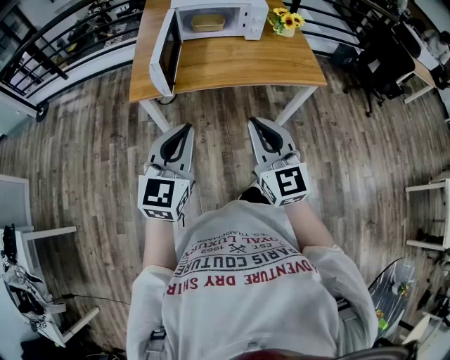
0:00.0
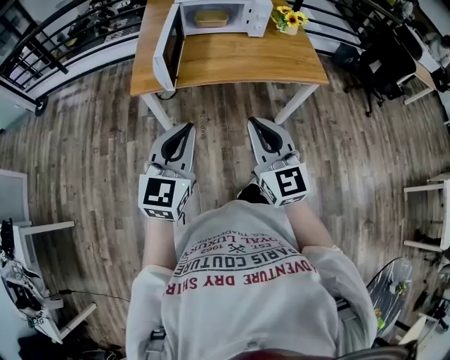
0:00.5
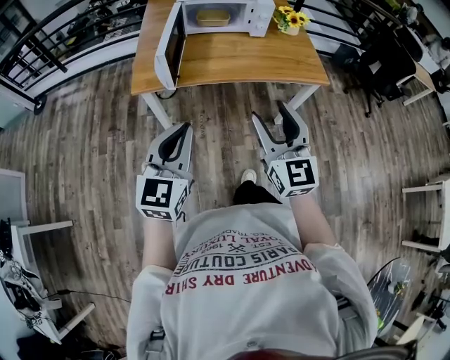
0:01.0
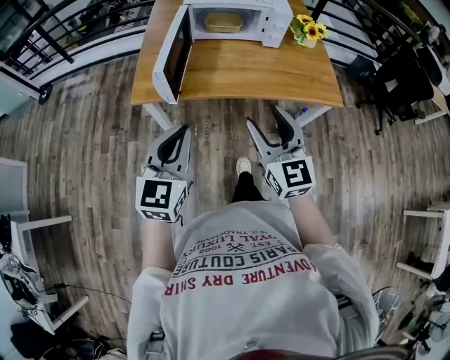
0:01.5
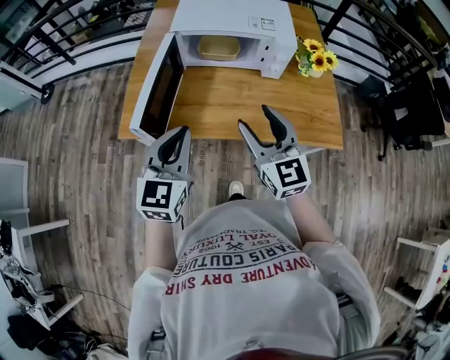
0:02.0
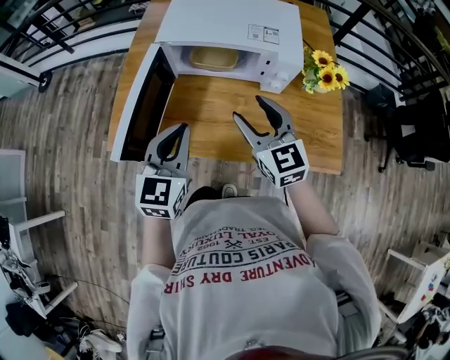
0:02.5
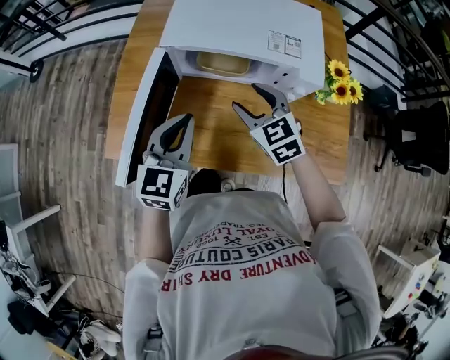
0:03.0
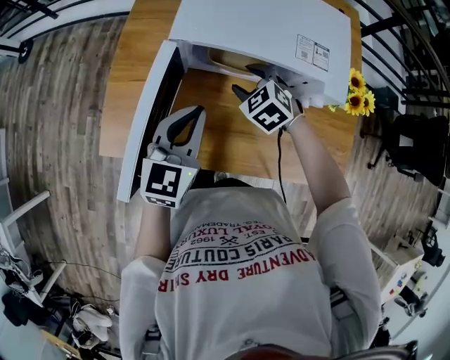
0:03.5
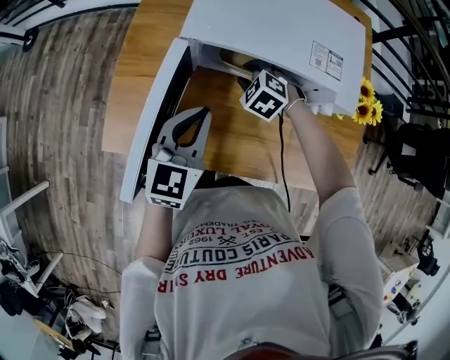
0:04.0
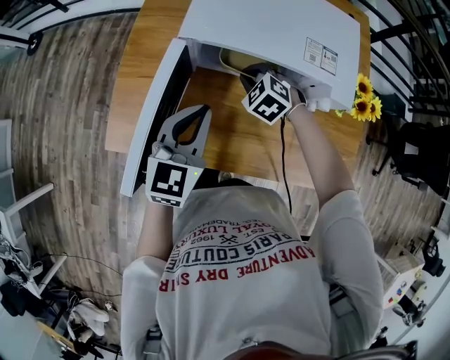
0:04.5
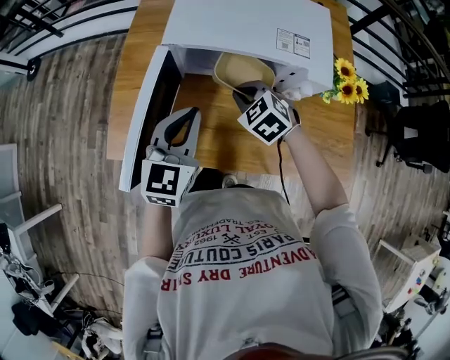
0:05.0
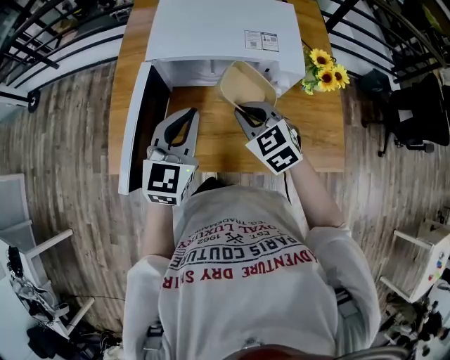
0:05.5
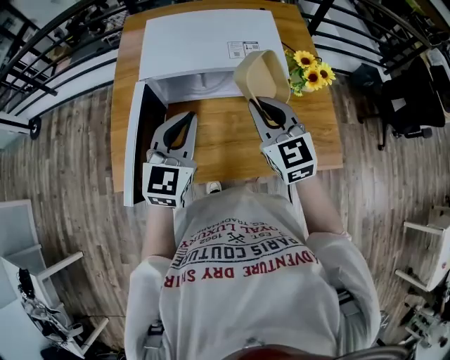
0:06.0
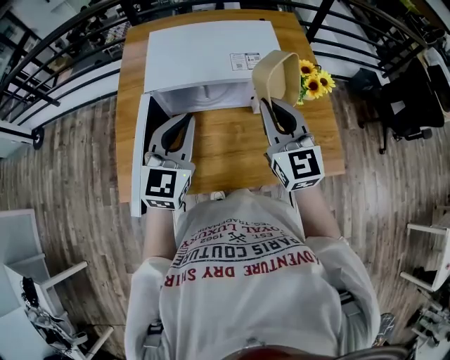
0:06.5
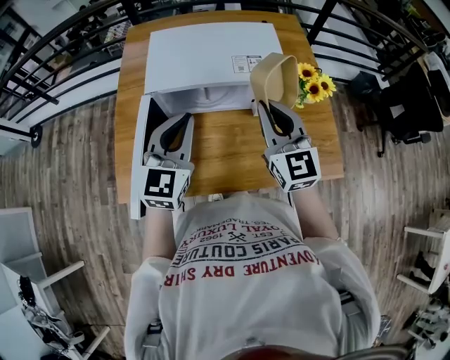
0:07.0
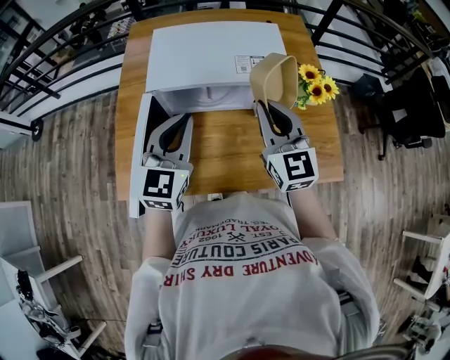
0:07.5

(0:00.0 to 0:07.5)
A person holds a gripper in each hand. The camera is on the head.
0:00.0 - 0:02.0: The grippers both shift forward by approximately 25 cm. The right gripper opens.
0:02.0 - 0:04.0: The right gripper is displaced forward and downward by approximately 40 cm, tilts its fingers some 60 degrees downward, and closes up. Meanwhile the left gripper shifts roughly 25 cm forward and downward.
0:04.0 - 0:05.5: The right gripper travels backward and upward by approximately 20 cm, rotates roughly 40 degrees, and closes up, while the left gripper goes approximately 5 cm upward.
0:05.5 - 0:07.5: The right gripper travels upward and to the right by some 15 cm, and tips its fingers upward by about 30 degrees. Meanwhile the left gripper shifts by roughly 5 cm.

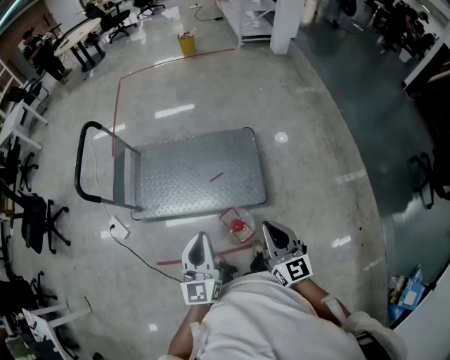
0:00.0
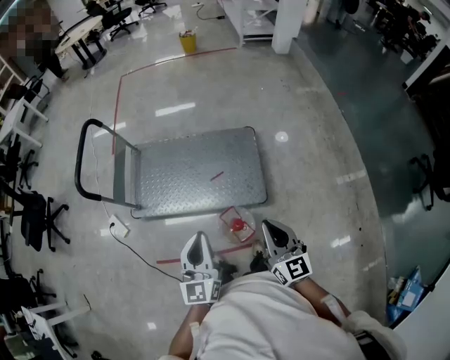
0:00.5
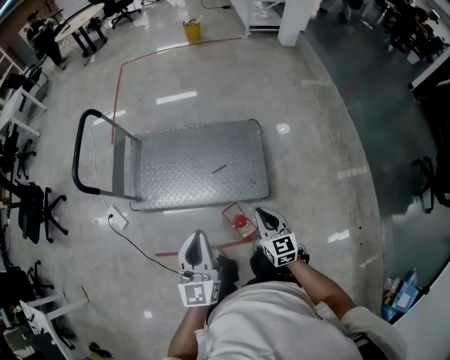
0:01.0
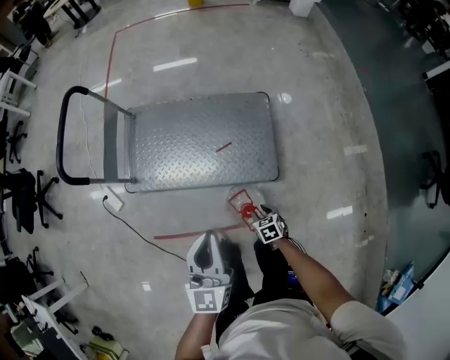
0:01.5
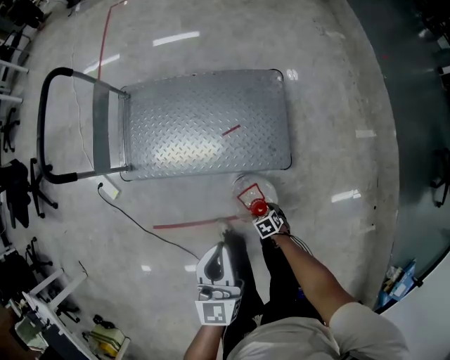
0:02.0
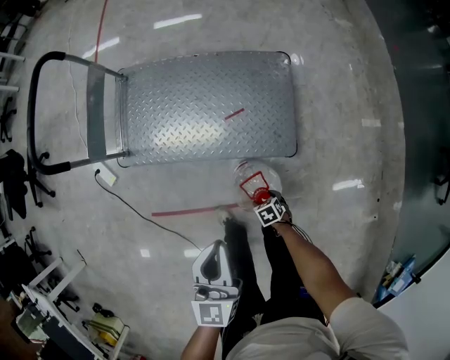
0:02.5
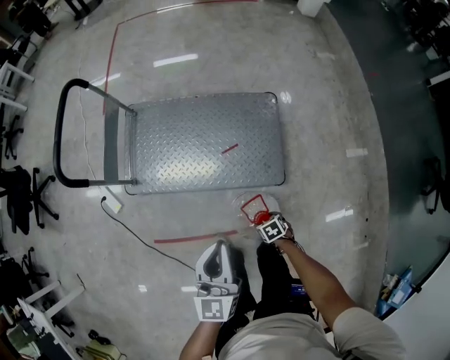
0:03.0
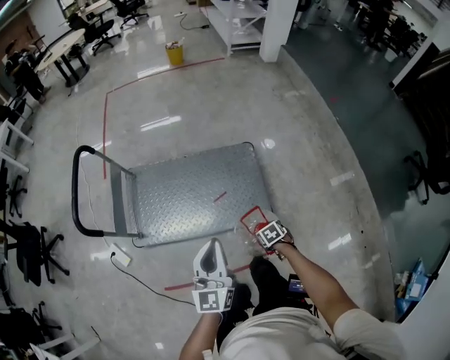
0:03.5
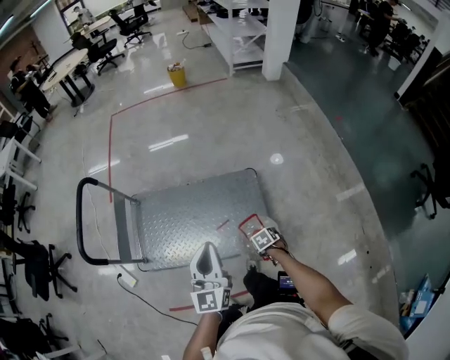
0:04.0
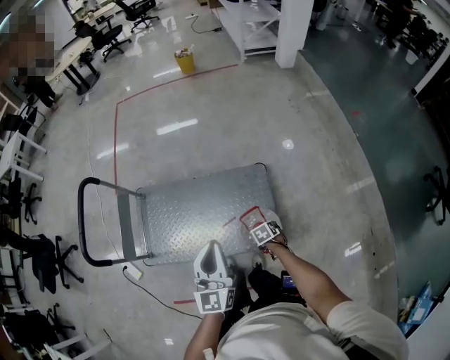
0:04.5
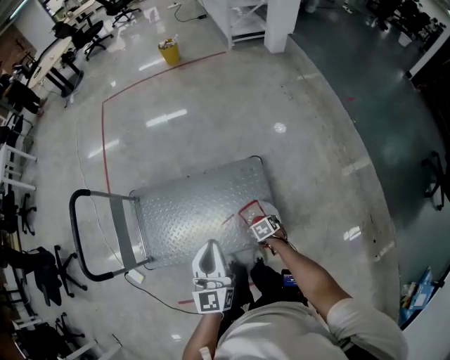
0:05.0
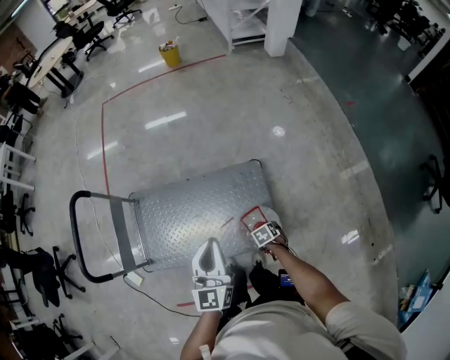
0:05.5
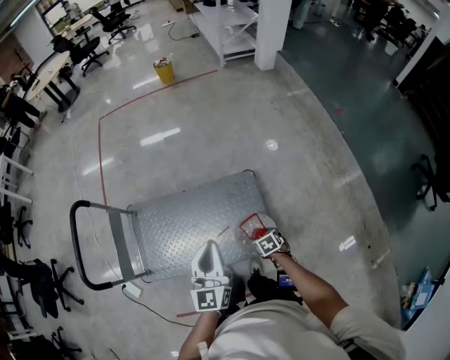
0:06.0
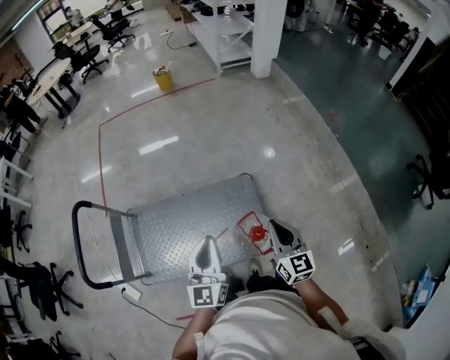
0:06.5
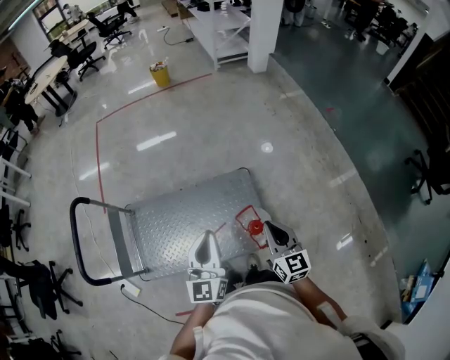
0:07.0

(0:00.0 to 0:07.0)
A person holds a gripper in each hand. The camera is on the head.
0:00.0 - 0:02.0: The left gripper shifts roughly 15 cm downward. Meanwhile the right gripper shifts some 50 cm downward, tips its fingers downward by approximately 70 degrees, and opens up.
0:02.0 - 0:03.5: The left gripper is displaced upward by about 15 cm; the right gripper heads upward, covering approximately 20 cm.
0:03.5 - 0:05.0: The left gripper ends up roughly 25 cm from where it was, while the right gripper moves roughly 25 cm.
0:05.0 - 0:07.0: The right gripper shifts roughly 35 cm upward, tilts its fingers some 60 degrees upward, and closes up; the left gripper ends up roughly 5 cm from where it was.

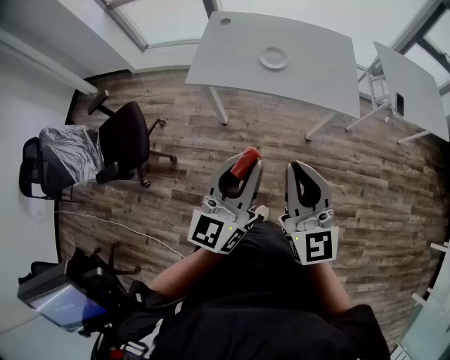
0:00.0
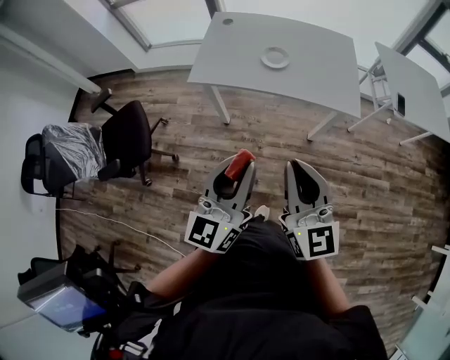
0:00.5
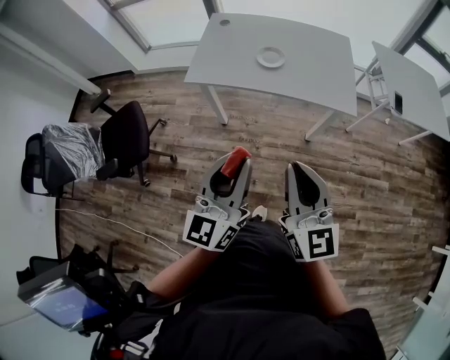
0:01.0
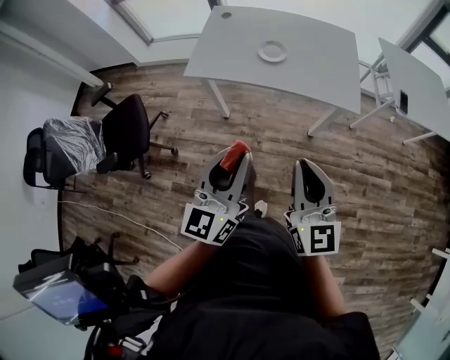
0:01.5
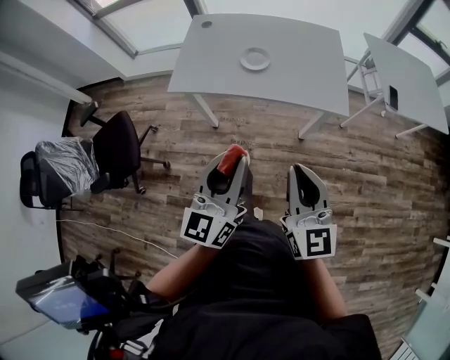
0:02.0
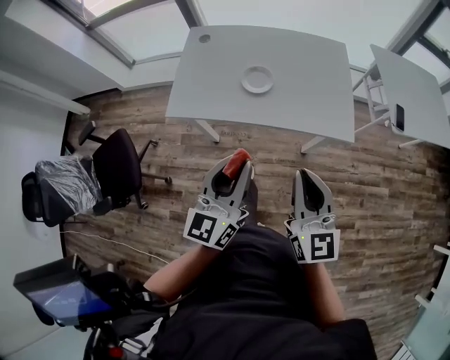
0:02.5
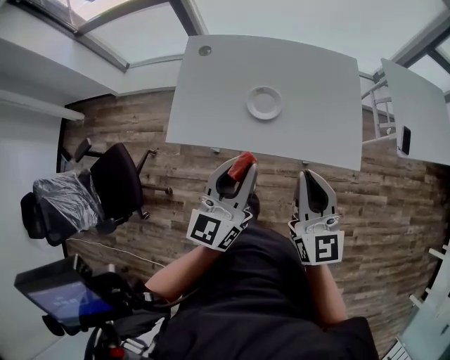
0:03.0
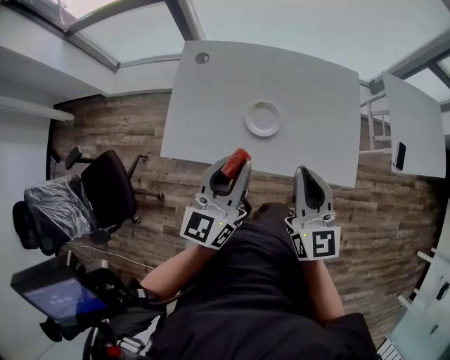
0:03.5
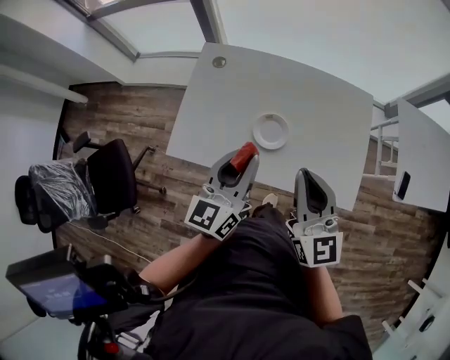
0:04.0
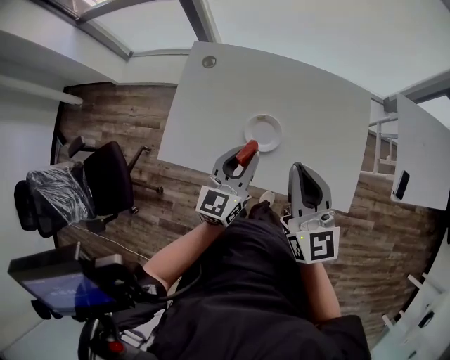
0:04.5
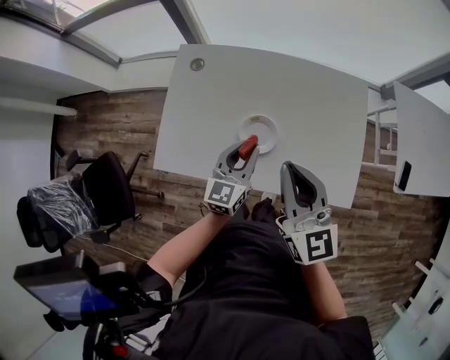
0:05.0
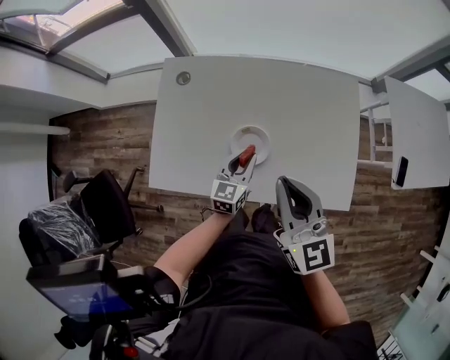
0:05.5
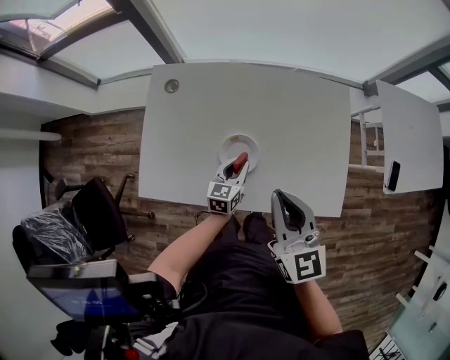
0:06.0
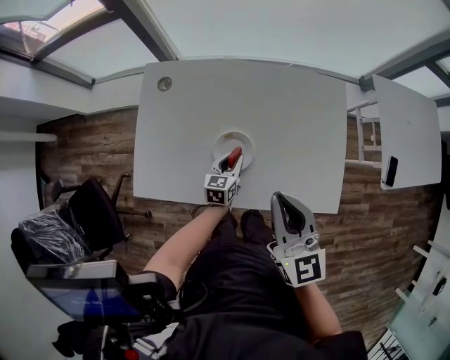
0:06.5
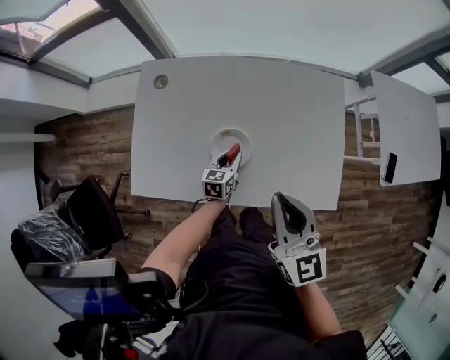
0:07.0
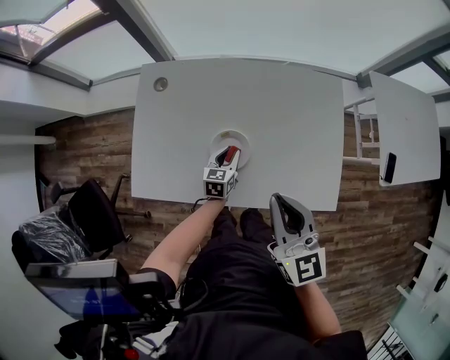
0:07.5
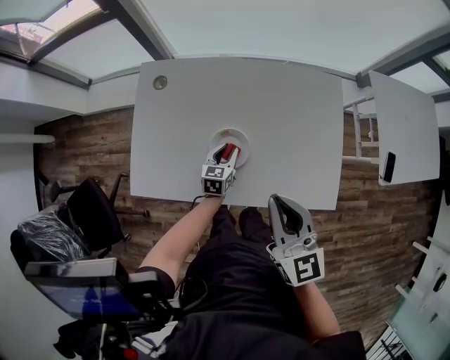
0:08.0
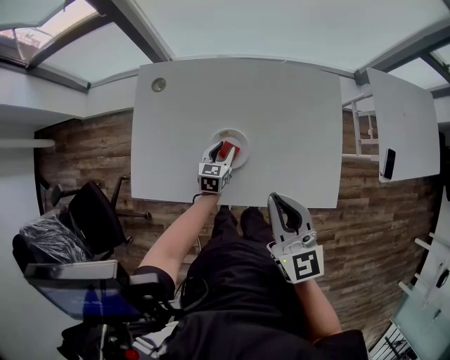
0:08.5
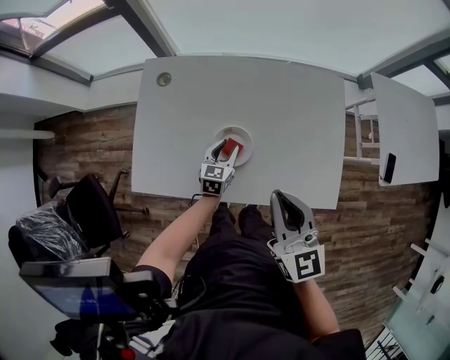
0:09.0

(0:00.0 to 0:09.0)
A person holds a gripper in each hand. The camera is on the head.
0:00.0 - 0:02.0: The left gripper moves some 5 cm. The right gripper heads to the right and downward, covering approximately 10 cm.
0:02.0 - 0:04.5: Both grippers are carried forward, approximately 40 cm.
0:04.5 - 0:07.0: The left gripper heads downward, covering some 25 cm, and swivels some 30 degrees, while the right gripper shifts some 5 cm downward.
0:07.0 - 0:09.0: There are only small adjustments of the grippers.

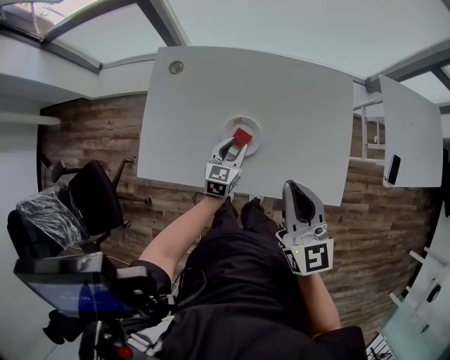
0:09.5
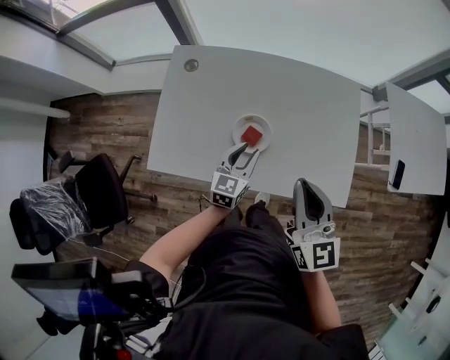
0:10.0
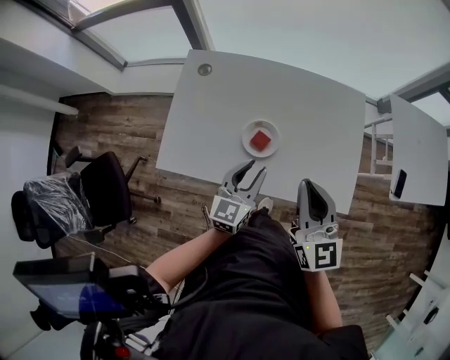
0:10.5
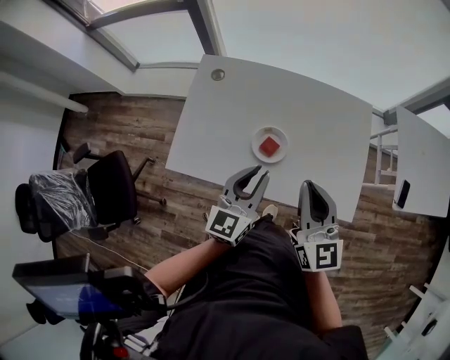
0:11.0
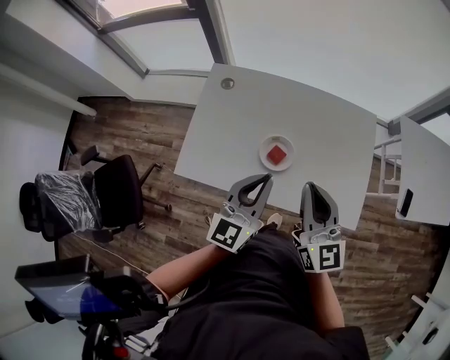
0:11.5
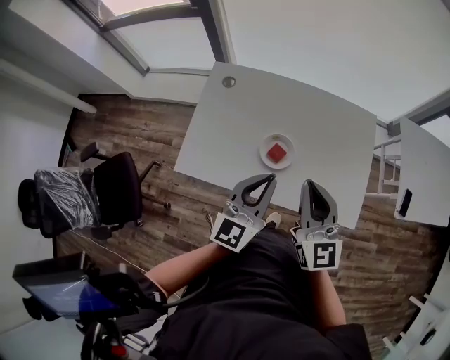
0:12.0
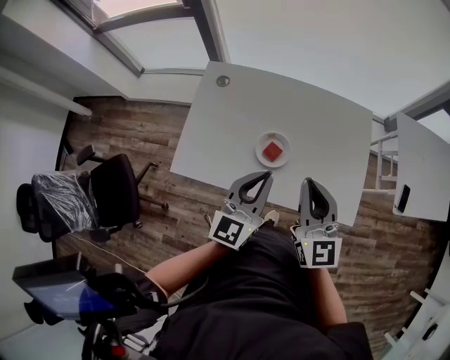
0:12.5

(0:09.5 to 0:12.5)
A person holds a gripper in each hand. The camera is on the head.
0:09.5 - 0:11.0: The left gripper moves upward and backward, about 25 cm, and changes its angle by roughly 20 degrees.
0:11.0 - 0:12.5: The grippers stay close to where they were, moving slightly.
